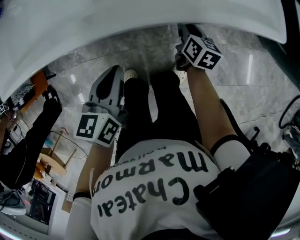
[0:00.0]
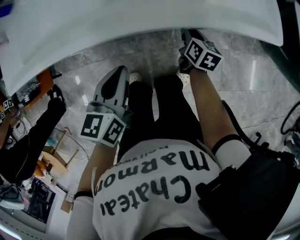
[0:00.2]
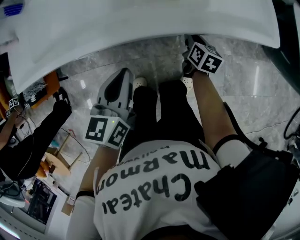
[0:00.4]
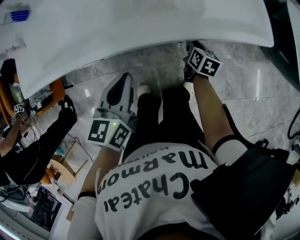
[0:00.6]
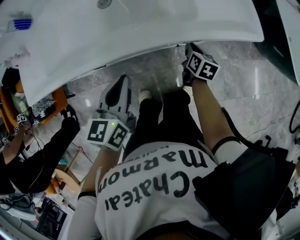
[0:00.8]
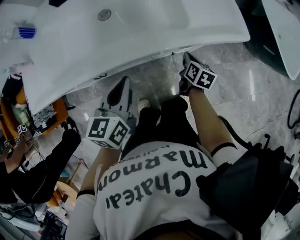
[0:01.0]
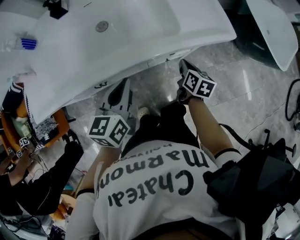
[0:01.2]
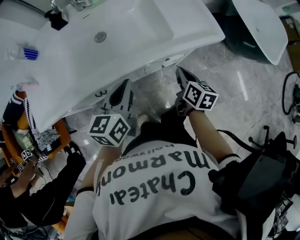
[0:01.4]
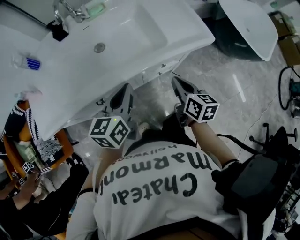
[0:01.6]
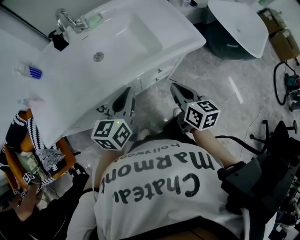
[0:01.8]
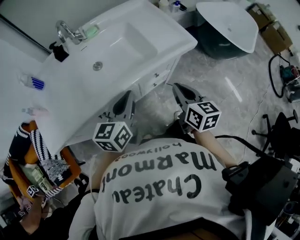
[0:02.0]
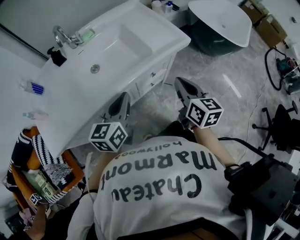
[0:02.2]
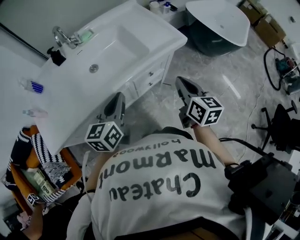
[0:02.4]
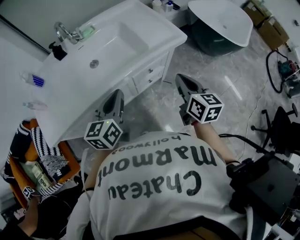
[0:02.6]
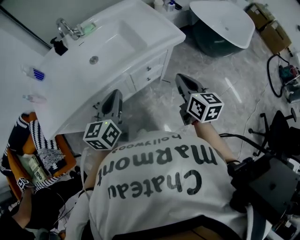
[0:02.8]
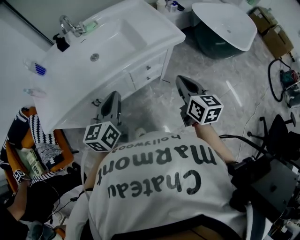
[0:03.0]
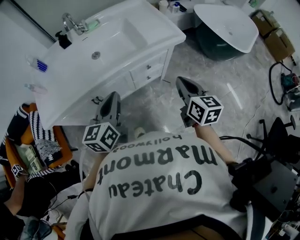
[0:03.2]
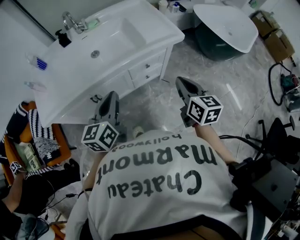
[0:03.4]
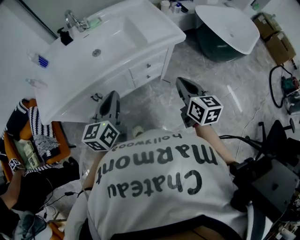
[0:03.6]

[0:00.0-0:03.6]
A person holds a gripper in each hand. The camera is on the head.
0:00.0 to 0:01.8: The right gripper moves upward and backward, about 35 cm. Meanwhile the left gripper goes about 20 cm upward, and changes its angle by about 30 degrees.
0:01.8 to 0:03.6: The left gripper heads backward, covering about 10 cm. Meanwhile the right gripper moves to the right, backward and upward, about 15 cm.

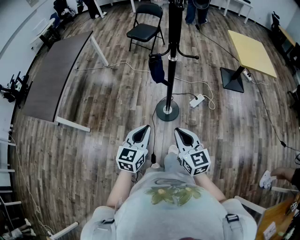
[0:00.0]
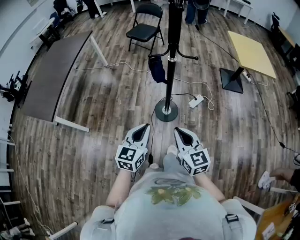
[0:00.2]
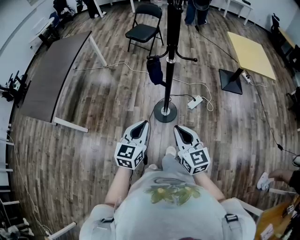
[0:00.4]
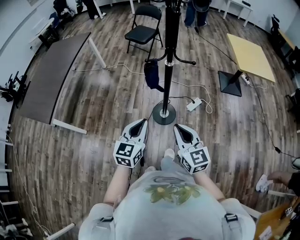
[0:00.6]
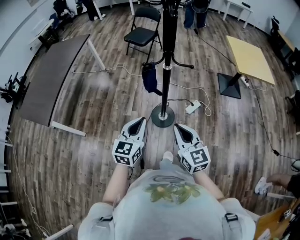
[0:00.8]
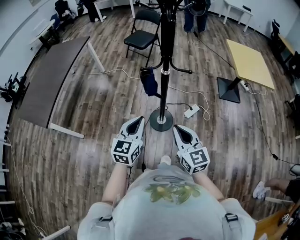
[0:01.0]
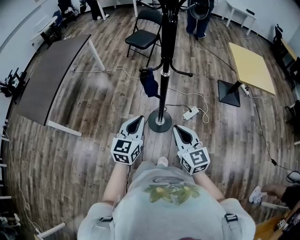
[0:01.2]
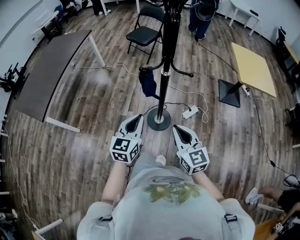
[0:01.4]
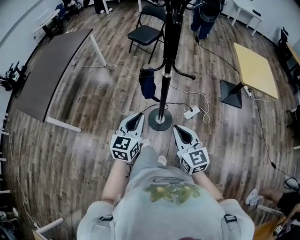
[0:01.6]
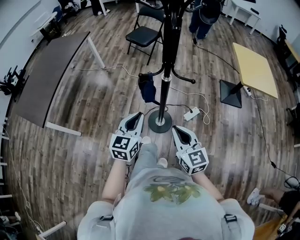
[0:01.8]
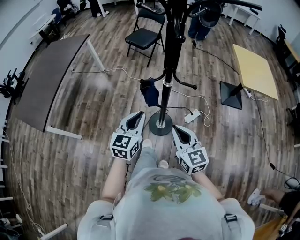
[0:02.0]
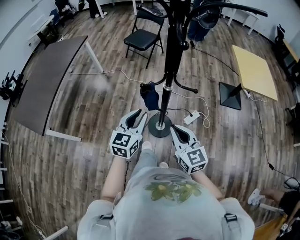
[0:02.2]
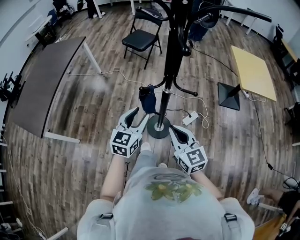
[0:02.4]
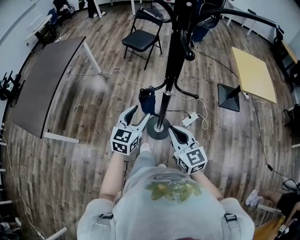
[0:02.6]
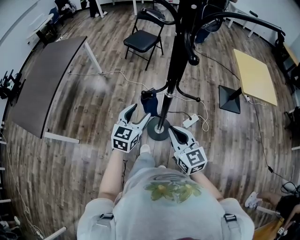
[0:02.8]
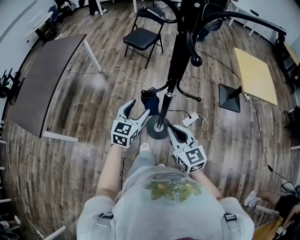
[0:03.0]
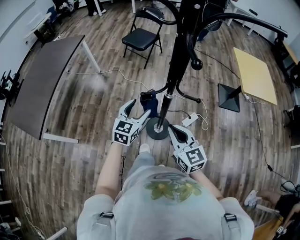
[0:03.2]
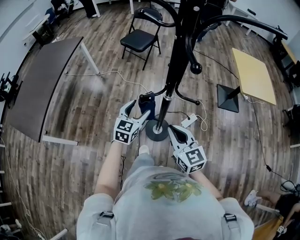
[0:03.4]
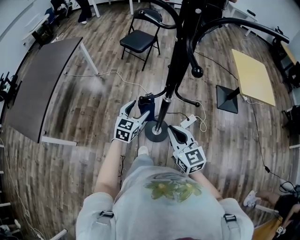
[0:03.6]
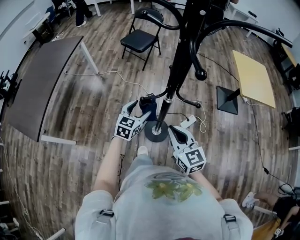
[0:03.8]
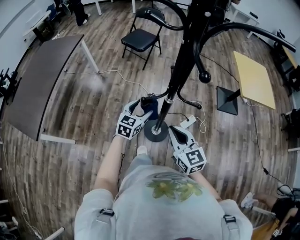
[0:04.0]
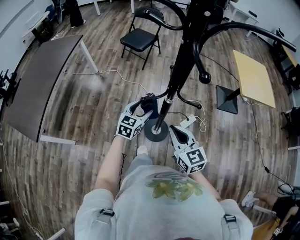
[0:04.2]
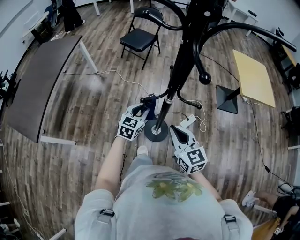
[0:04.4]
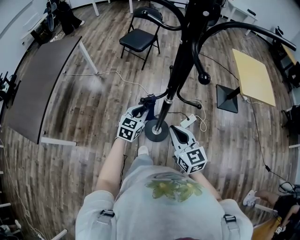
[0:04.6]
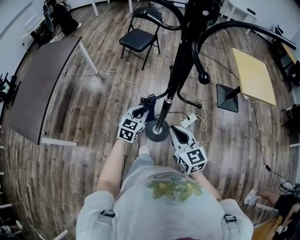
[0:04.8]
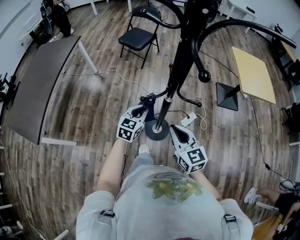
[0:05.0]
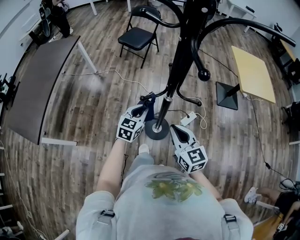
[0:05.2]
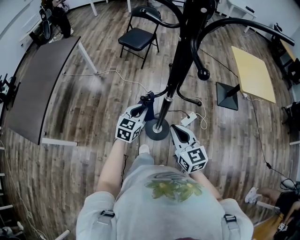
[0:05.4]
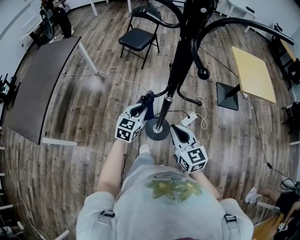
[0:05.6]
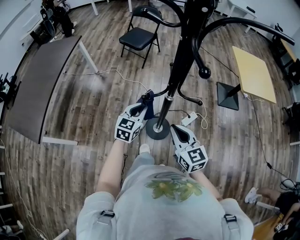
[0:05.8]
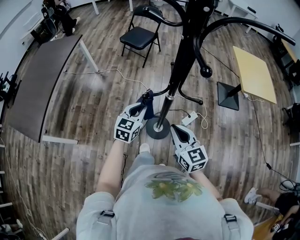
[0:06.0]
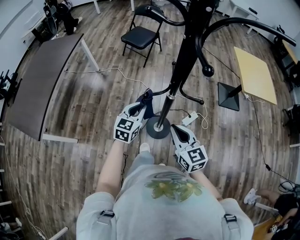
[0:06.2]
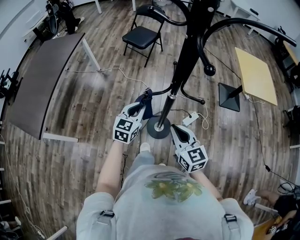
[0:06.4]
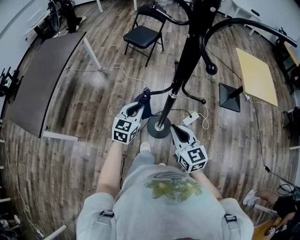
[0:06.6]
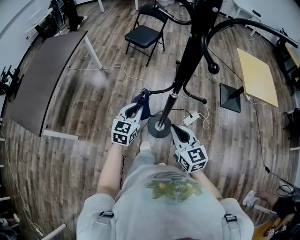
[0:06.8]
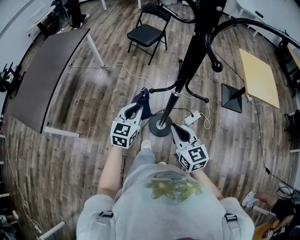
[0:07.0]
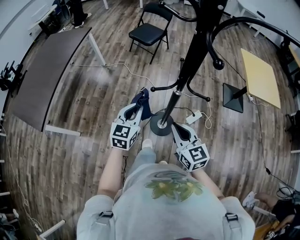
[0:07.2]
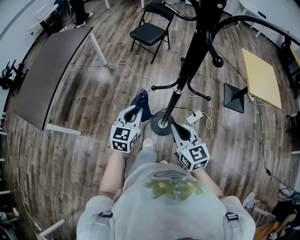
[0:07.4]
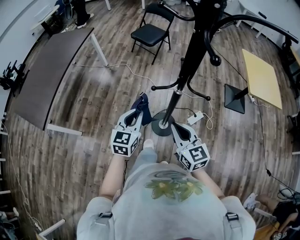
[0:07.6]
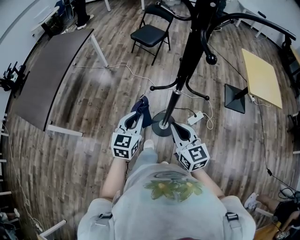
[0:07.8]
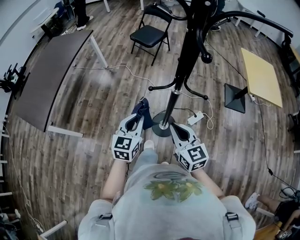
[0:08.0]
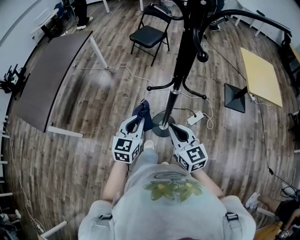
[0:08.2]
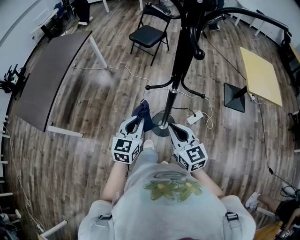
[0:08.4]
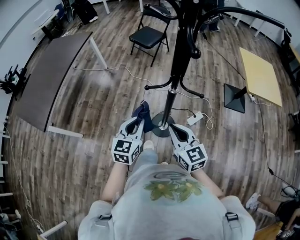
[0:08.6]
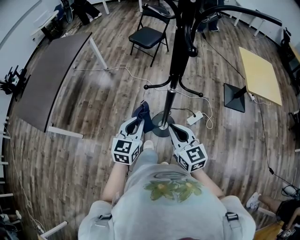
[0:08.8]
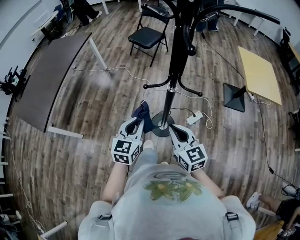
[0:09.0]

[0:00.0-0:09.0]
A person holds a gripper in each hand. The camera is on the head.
0:00.0 to 0:01.6: The right gripper is displaced forward and to the right by about 15 cm. Meanwhile the left gripper is displaced forward by roughly 15 cm.
0:01.6 to 0:03.0: The grippers both shift forward by about 15 cm. The left gripper opens up.
0:03.0 to 0:04.4: The left gripper is displaced downward and forward by about 10 cm, and closes up.
0:04.4 to 0:06.0: The grippers make only small movements.
0:06.0 to 0:07.6: The left gripper goes some 10 cm backward and to the left.
0:07.6 to 0:09.0: The left gripper is displaced backward by about 5 cm.

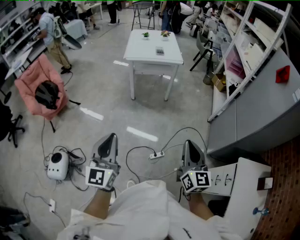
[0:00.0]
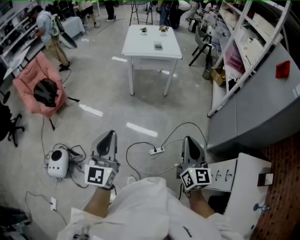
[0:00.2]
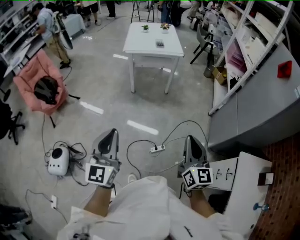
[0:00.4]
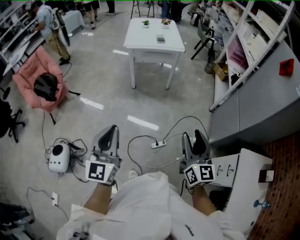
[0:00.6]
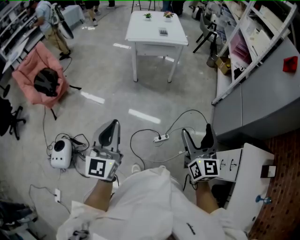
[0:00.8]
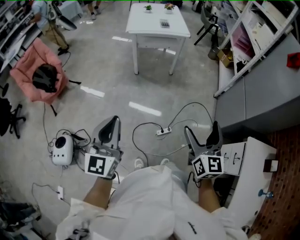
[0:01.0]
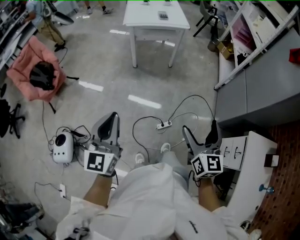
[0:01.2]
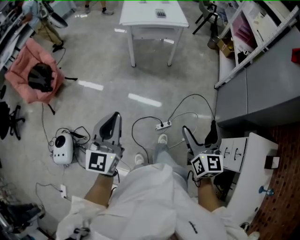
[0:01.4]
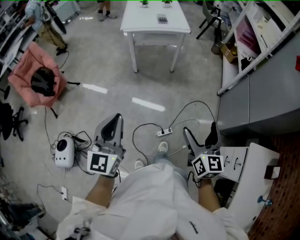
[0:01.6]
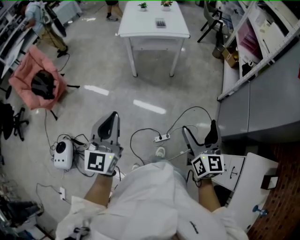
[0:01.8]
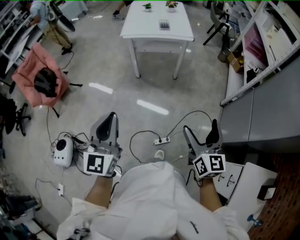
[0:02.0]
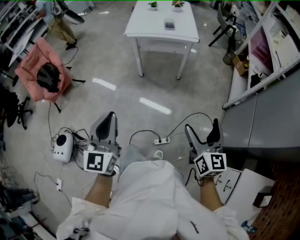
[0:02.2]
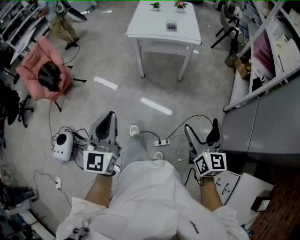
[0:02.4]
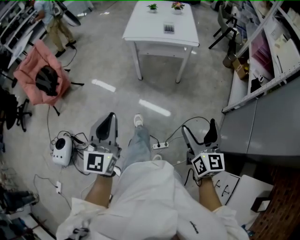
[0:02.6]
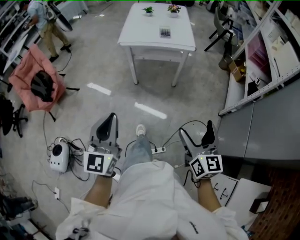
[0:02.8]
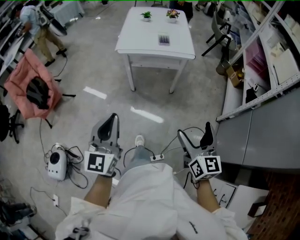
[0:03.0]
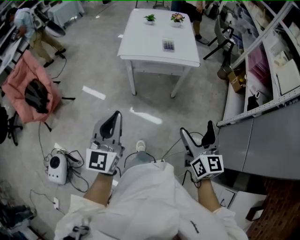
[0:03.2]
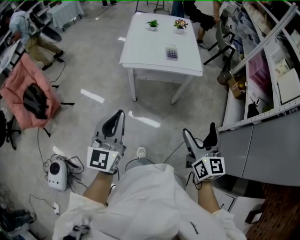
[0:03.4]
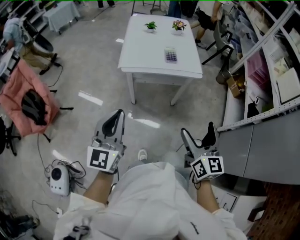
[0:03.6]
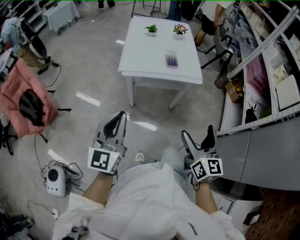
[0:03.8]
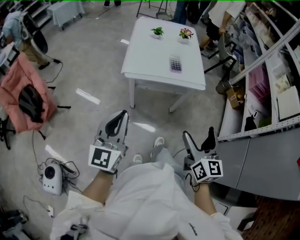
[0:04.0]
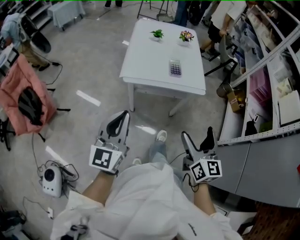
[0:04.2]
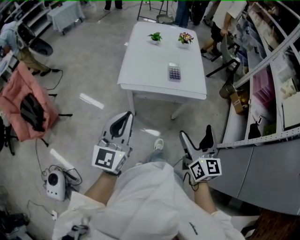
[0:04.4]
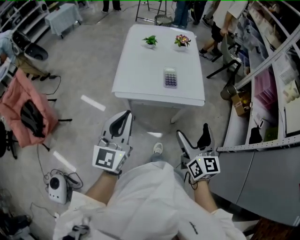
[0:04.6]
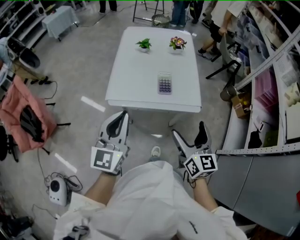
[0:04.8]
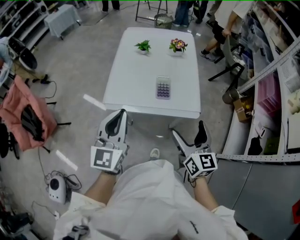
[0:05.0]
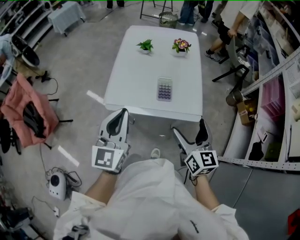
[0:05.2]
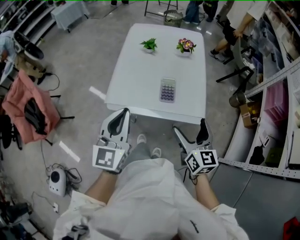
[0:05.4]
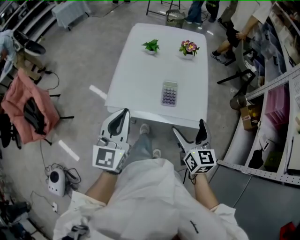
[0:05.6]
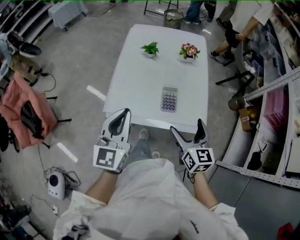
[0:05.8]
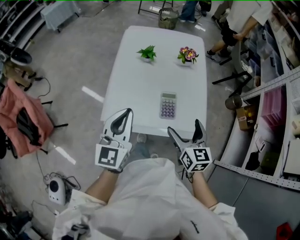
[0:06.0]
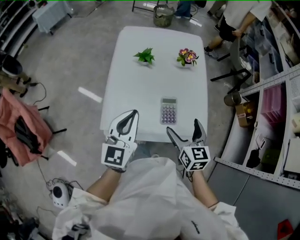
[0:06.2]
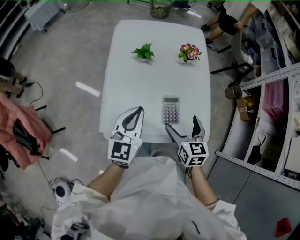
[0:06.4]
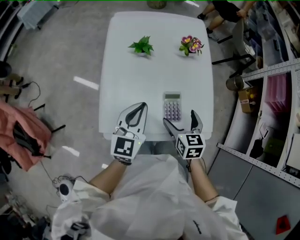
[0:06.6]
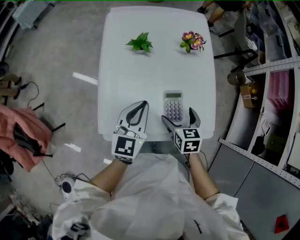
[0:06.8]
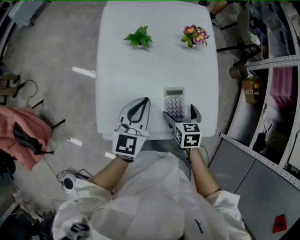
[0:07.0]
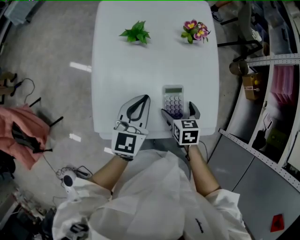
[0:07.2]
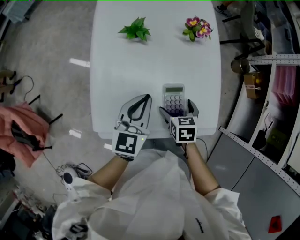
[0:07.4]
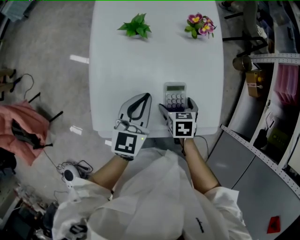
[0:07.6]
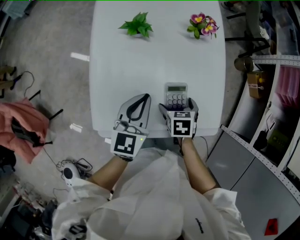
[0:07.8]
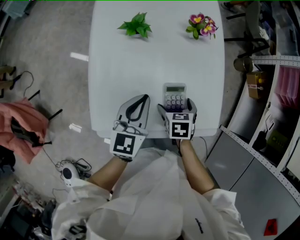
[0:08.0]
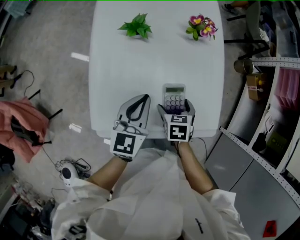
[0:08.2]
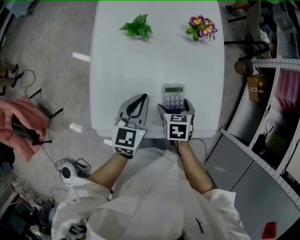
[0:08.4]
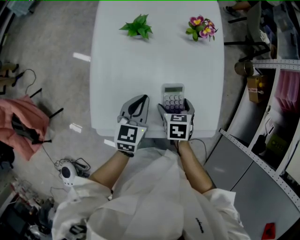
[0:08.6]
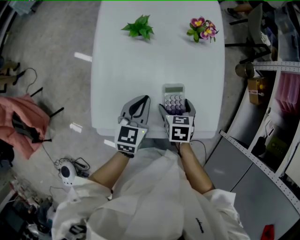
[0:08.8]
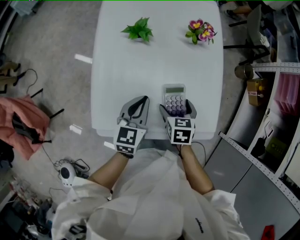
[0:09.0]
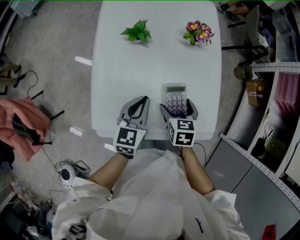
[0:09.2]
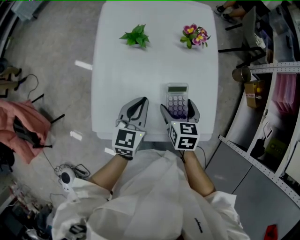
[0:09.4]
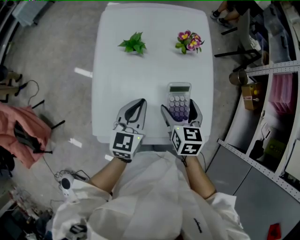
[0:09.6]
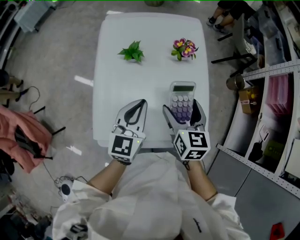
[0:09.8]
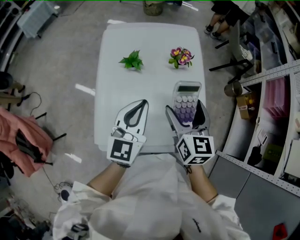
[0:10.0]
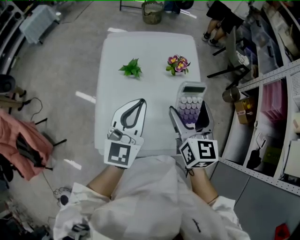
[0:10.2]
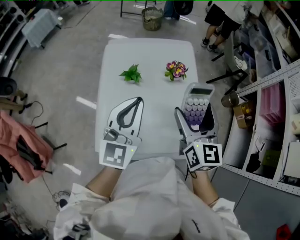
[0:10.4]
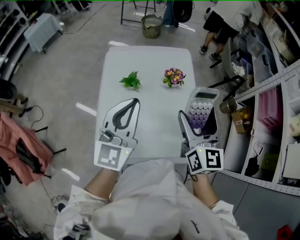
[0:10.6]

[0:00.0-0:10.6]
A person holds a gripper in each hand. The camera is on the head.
0:00.0 to 0:01.6: The right gripper goes approximately 10 cm forward and downward, and opens. The left gripper goes about 10 cm forward.
0:01.6 to 0:03.0: Both grippers travel together forward, some 30 cm.
0:03.0 to 0:04.6: Both grippers move forward, about 40 cm.
0:04.6 to 0:06.0: Both grippers move forward, some 30 cm.
0:06.0 to 0:07.6: Both grippers move downward and forward, approximately 25 cm. The right gripper points its fingers some 40 degrees further downward, while the left gripper changes its angle by about 20 degrees.
0:07.6 to 0:09.0: There are only small adjustments of the grippers.
0:09.0 to 0:10.6: The grippers both shift upward by roughly 35 cm. The right gripper angles its fingers upward, by about 50 degrees. The left gripper points its fingers roughly 30 degrees further upward.
